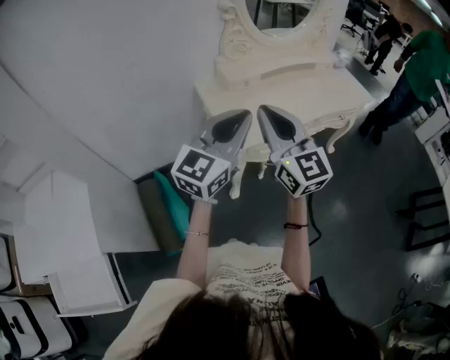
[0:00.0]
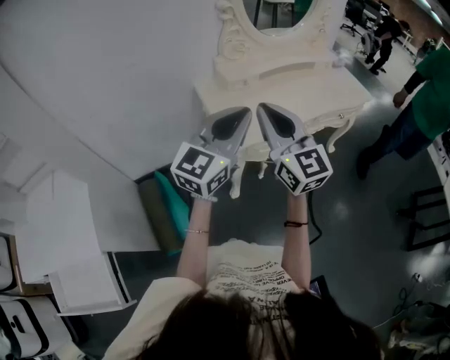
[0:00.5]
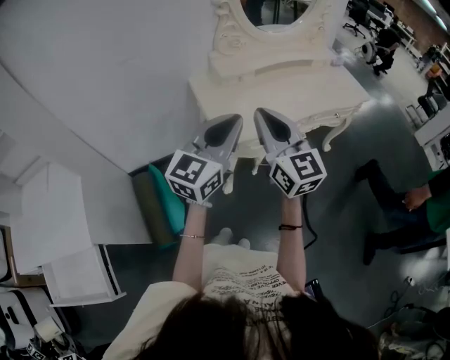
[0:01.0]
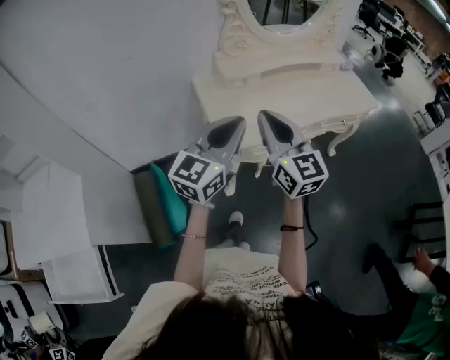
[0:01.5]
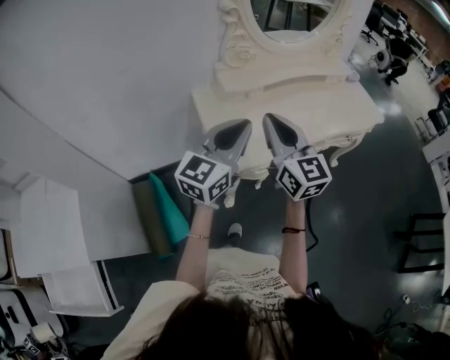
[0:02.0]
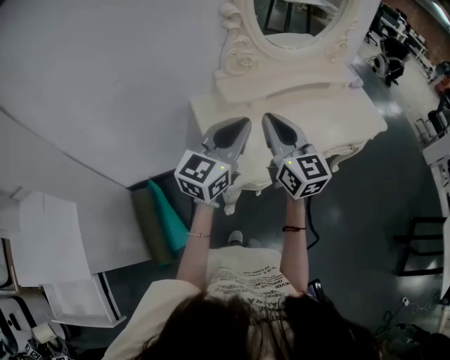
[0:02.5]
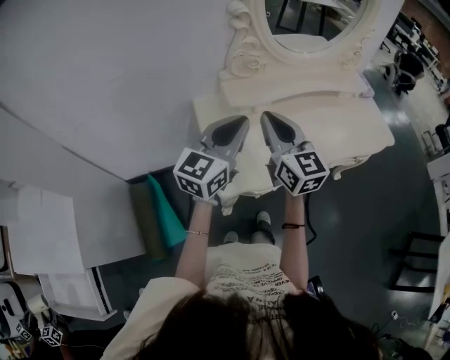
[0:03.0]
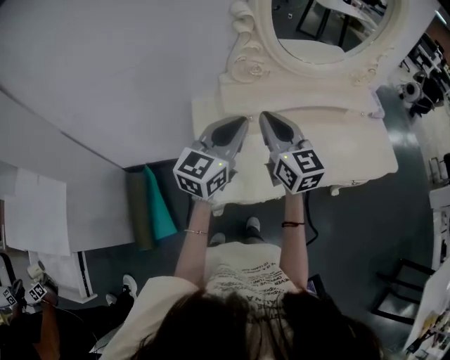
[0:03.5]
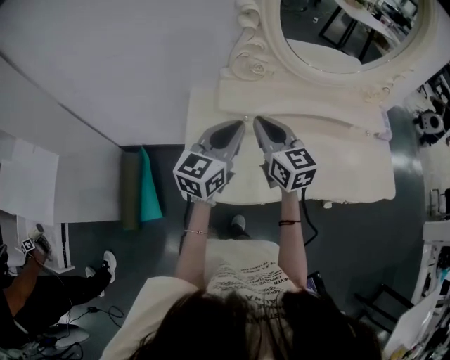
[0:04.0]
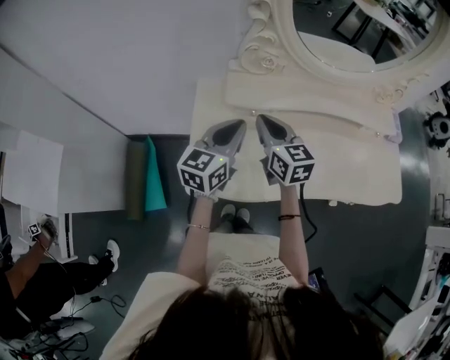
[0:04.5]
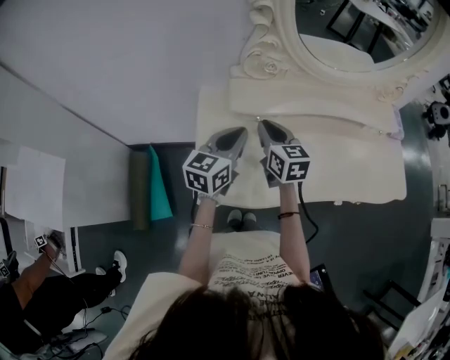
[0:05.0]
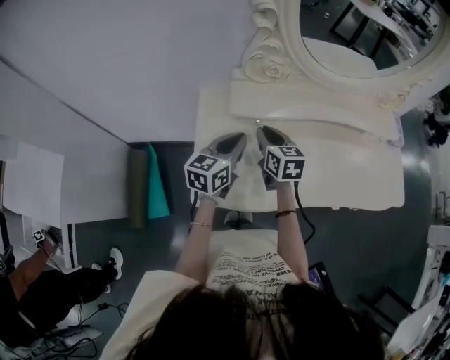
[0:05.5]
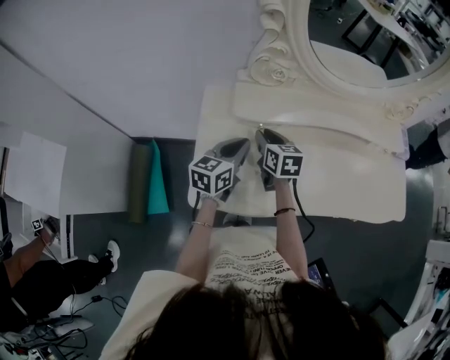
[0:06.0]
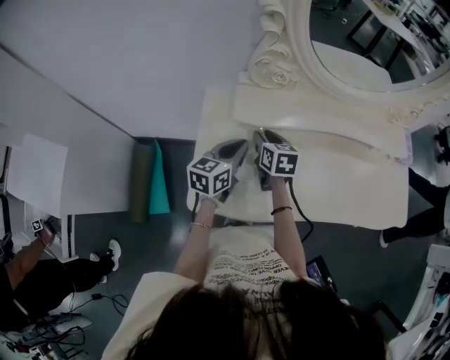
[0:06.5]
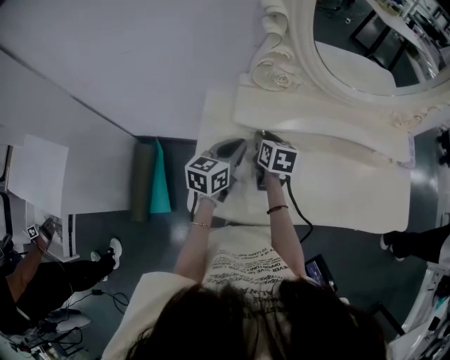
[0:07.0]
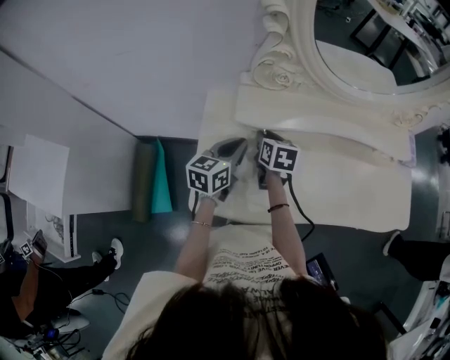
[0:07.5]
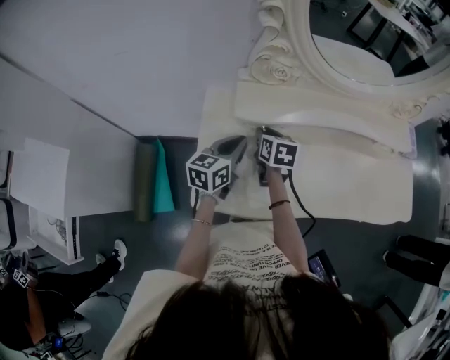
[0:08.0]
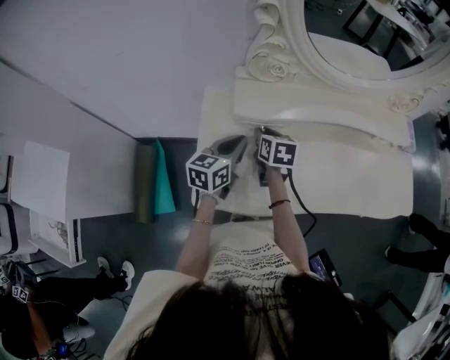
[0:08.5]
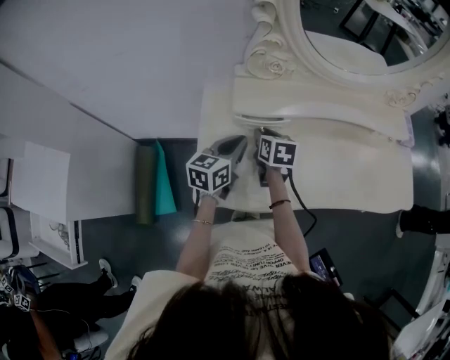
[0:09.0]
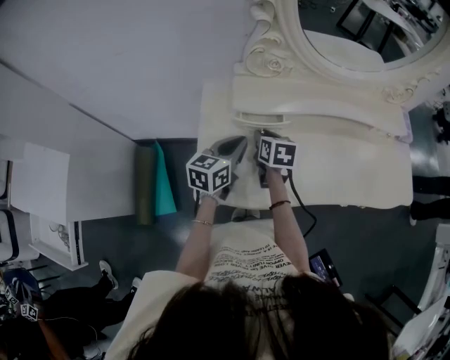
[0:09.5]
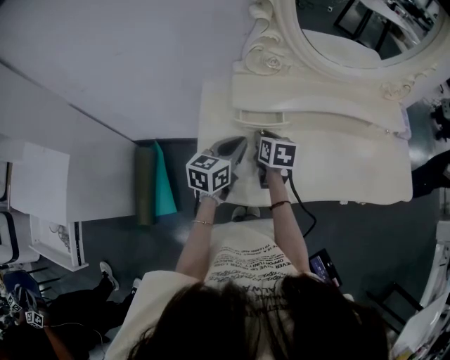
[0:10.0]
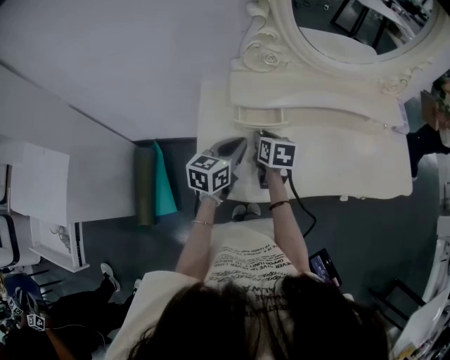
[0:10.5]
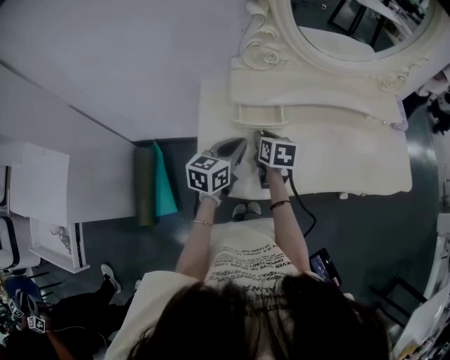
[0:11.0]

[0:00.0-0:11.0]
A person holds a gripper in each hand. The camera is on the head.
0:00.0 to 0:02.0: The grippers both shift forward by some 15 cm.
0:02.0 to 0:03.5: Both grippers travel together forward, roughly 20 cm.
0:03.5 to 0:05.5: The right gripper is displaced downward and forward by about 20 cm, and swivels roughly 30 degrees, while the left gripper moves downward, about 15 cm, and rotates about 20 degrees.
0:05.5 to 0:07.5: The right gripper goes some 5 cm downward, while the left gripper changes place by approximately 5 cm.
0:07.5 to 0:09.0: The grippers make only small movements.
0:09.0 to 0:11.0: The right gripper goes some 5 cm backward.

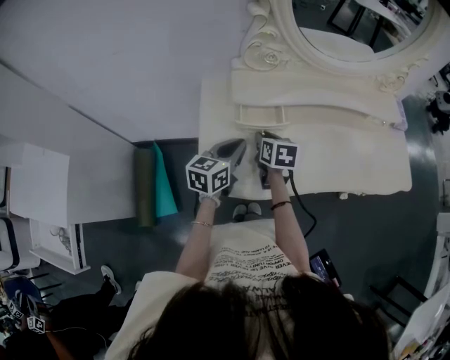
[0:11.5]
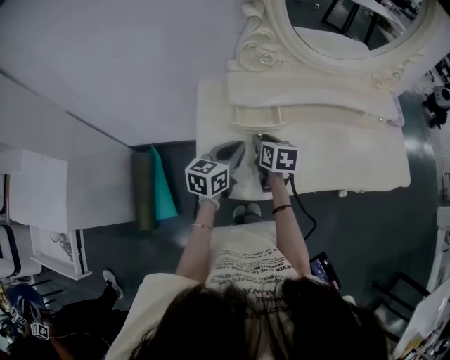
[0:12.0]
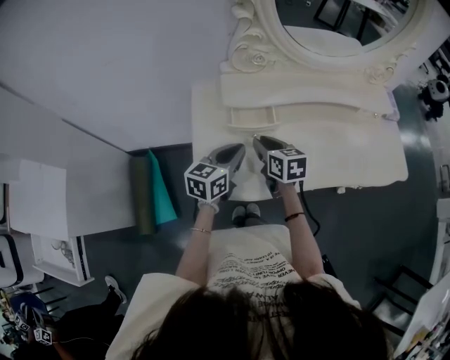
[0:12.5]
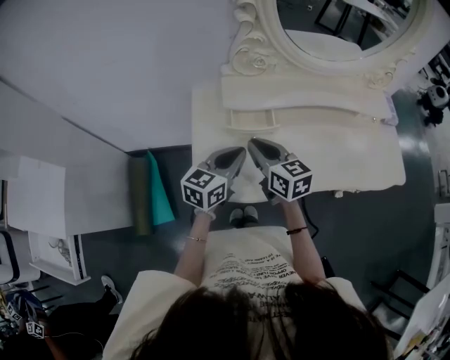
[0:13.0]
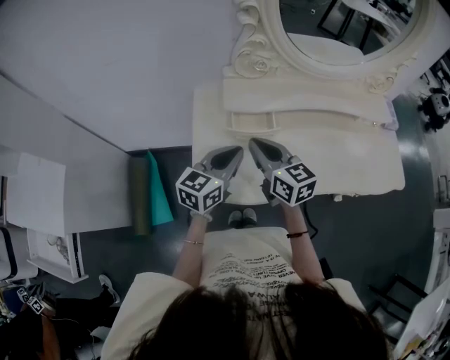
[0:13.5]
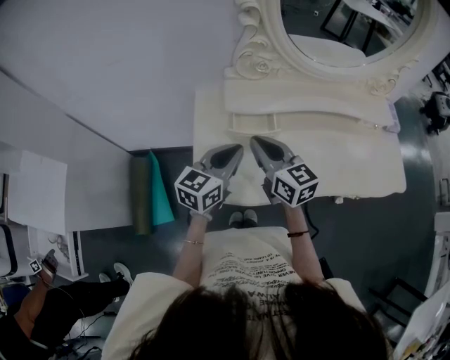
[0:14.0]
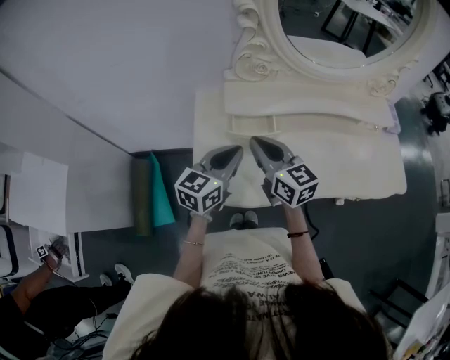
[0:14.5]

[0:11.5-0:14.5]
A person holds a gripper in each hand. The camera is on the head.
0:11.5 to 0:13.0: The right gripper goes roughly 10 cm upward and backward, and rotates approximately 30 degrees. The left gripper changes place by roughly 5 cm.
0:13.0 to 0:14.5: The grippers move only a little.

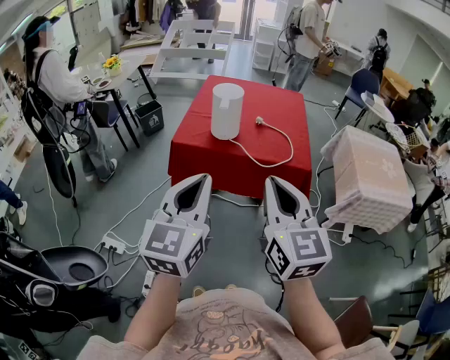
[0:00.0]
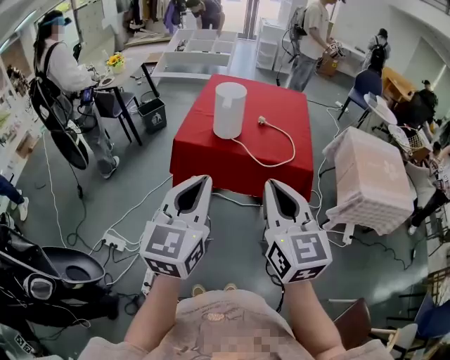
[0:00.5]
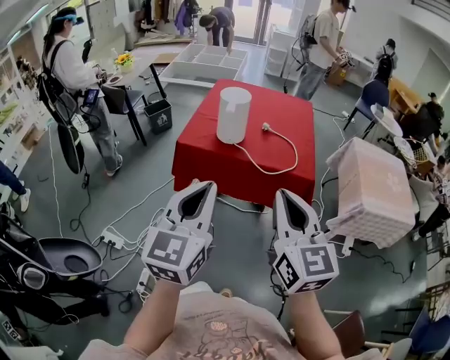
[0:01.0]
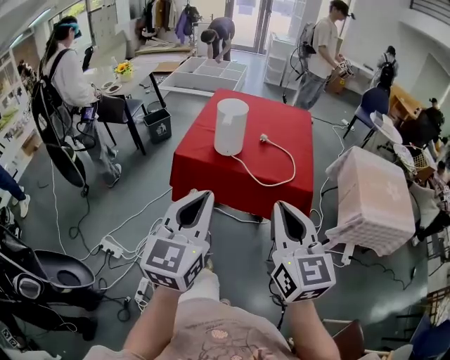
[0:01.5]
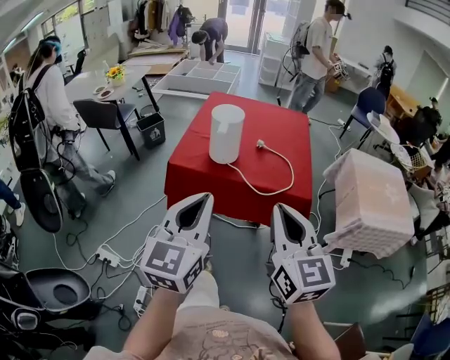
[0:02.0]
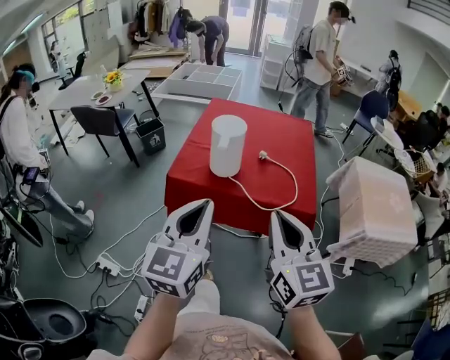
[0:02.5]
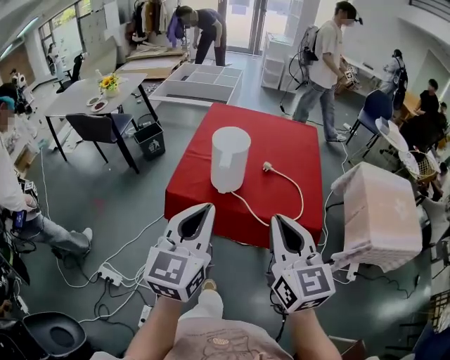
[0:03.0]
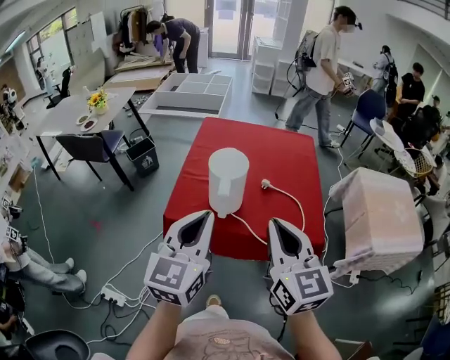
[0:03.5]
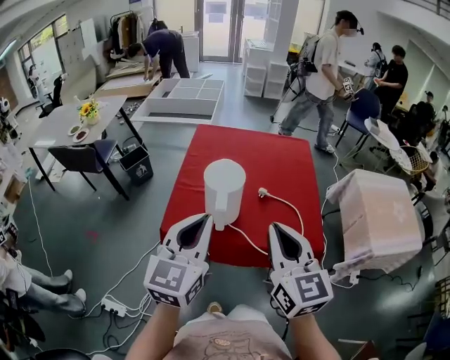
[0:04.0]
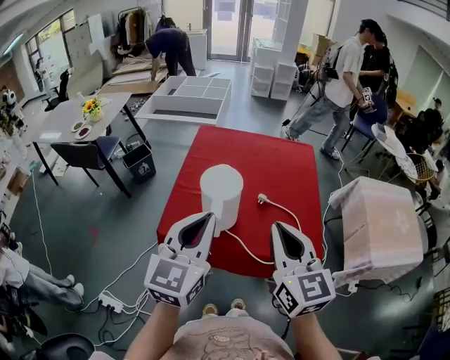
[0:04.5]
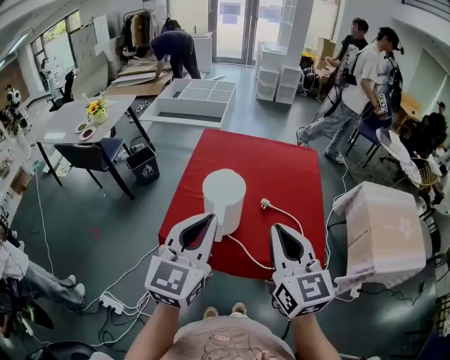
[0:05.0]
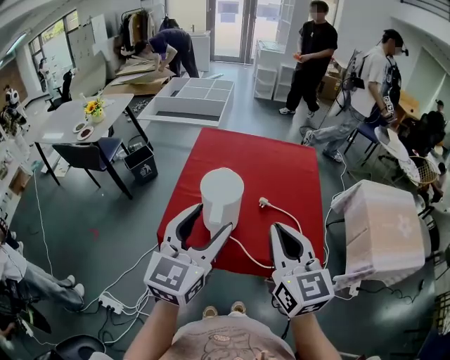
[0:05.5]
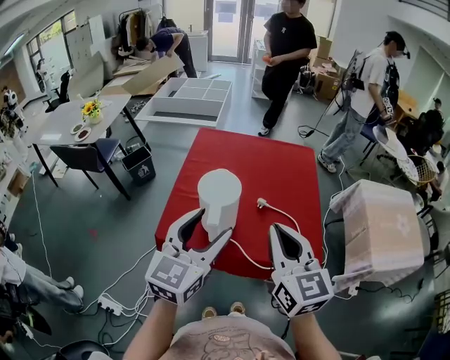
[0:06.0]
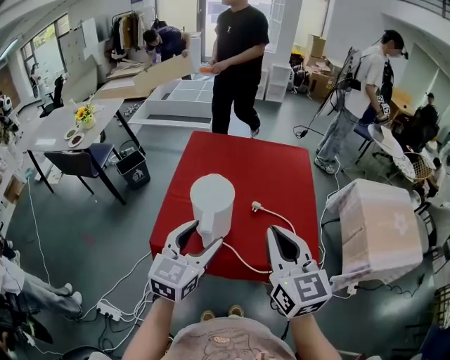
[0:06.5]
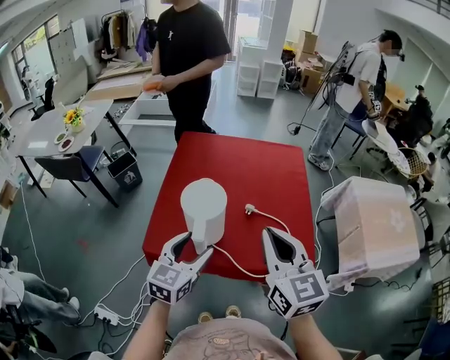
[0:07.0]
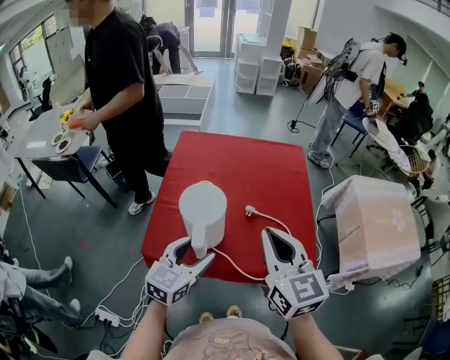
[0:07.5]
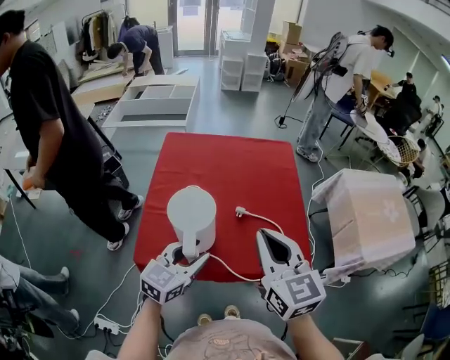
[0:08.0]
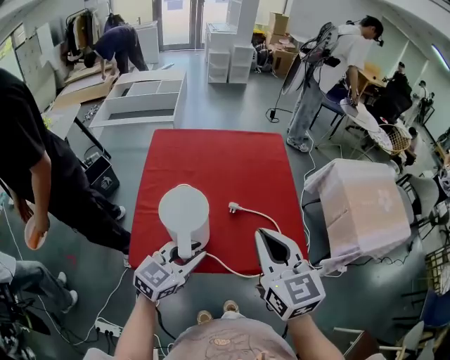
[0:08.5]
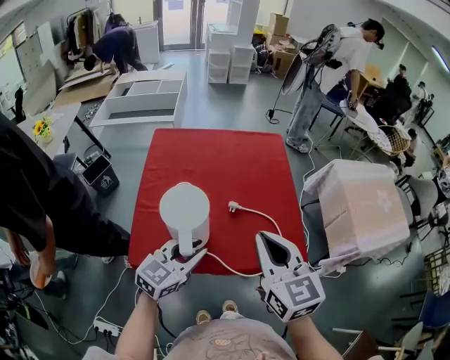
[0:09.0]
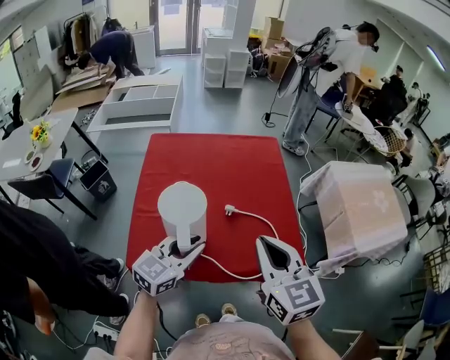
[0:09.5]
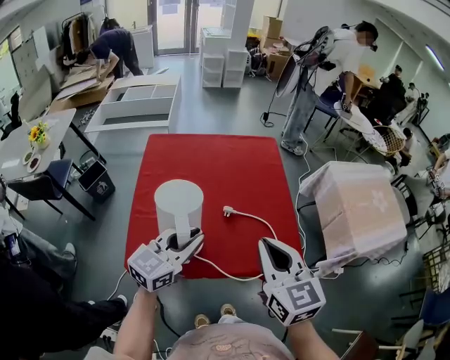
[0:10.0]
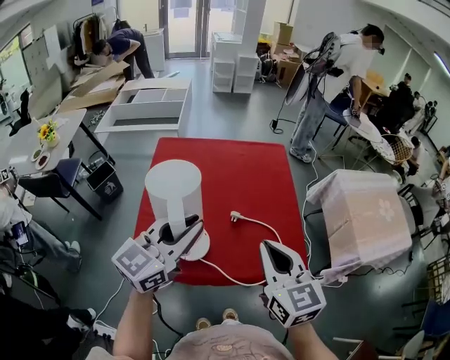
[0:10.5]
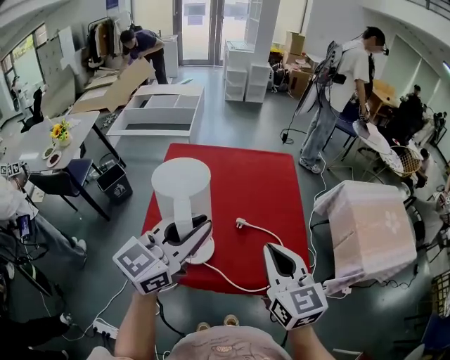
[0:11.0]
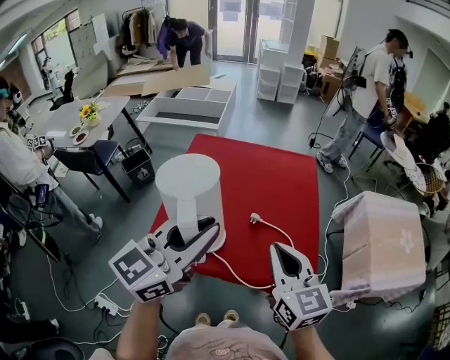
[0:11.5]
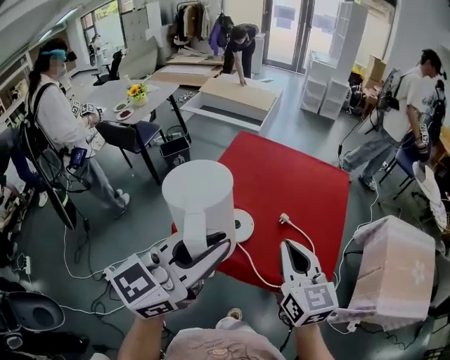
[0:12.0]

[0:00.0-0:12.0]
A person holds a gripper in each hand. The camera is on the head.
0:00.0 to 0:02.0: The two grippers go some 5 cm forward.
0:02.0 to 0:04.0: The grippers both shift forward by some 25 cm.
0:04.0 to 0:06.0: The right gripper goes approximately 5 cm forward; the left gripper ends up roughly 5 cm from where it was, and opens up.
0:06.0 to 0:08.0: The left gripper shifts some 15 cm downward, and swivels about 20 degrees, while the right gripper moves forward, about 5 cm.
0:08.0 to 0:10.0: The left gripper changes place by about 5 cm, and closes.
0:10.0 to 0:12.0: The left gripper moves upward and backward, about 25 cm, and changes its angle by about 30 degrees, while the right gripper shifts by about 5 cm, and rotates roughly 20 degrees.

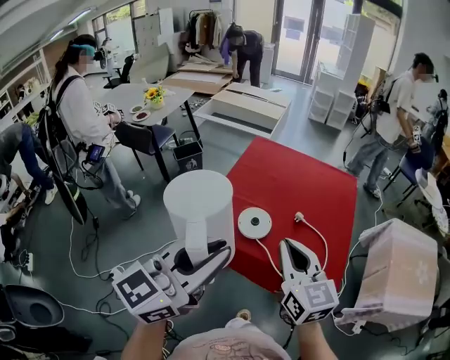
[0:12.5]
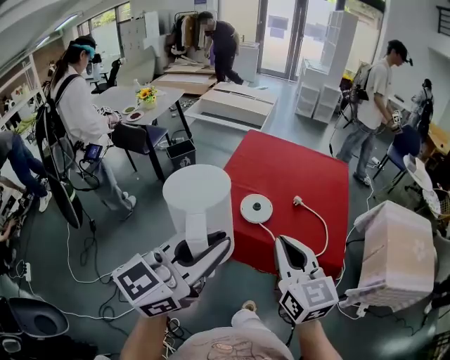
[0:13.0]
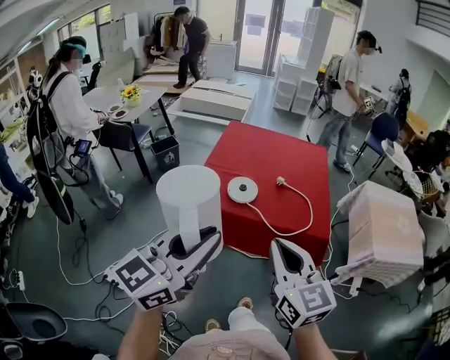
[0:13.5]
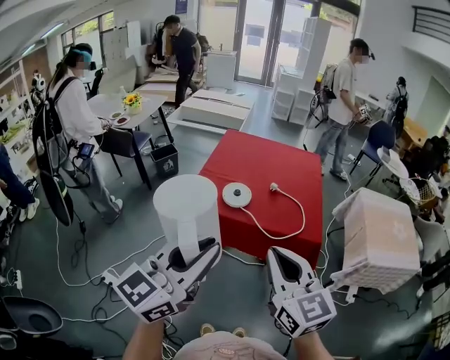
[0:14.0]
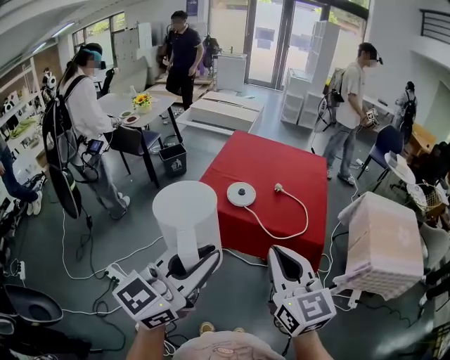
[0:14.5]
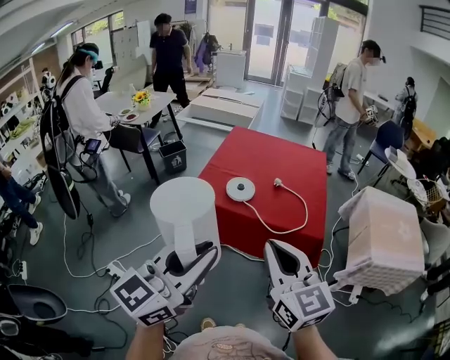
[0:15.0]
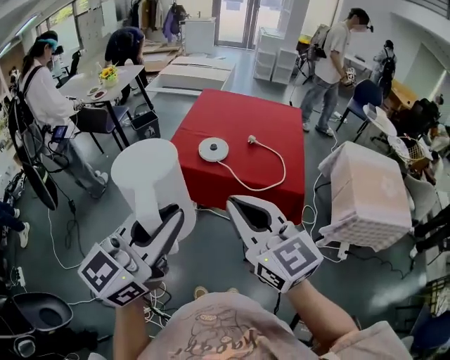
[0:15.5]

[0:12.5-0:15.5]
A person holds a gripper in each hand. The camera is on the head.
0:12.5 to 0:14.0: The grippers both shift backward by about 20 cm.
0:14.0 to 0:15.5: The left gripper heads backward, covering about 5 cm.
